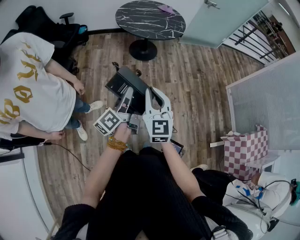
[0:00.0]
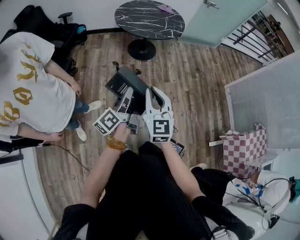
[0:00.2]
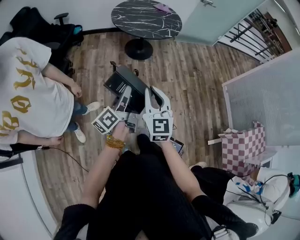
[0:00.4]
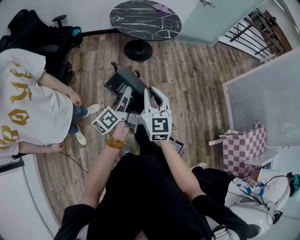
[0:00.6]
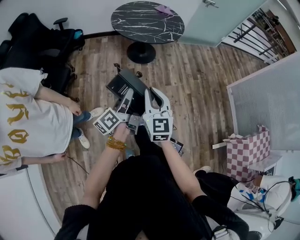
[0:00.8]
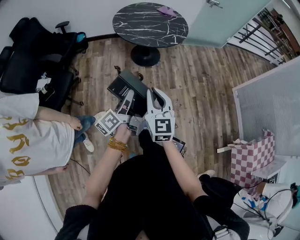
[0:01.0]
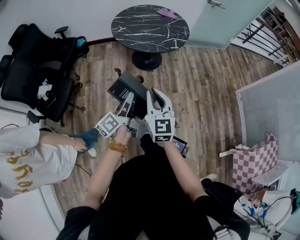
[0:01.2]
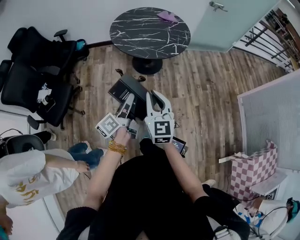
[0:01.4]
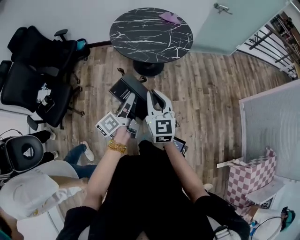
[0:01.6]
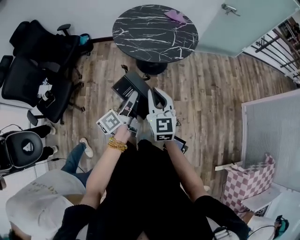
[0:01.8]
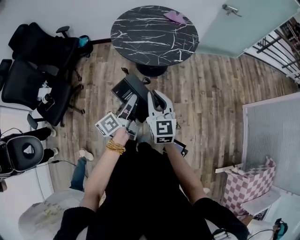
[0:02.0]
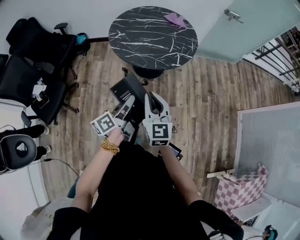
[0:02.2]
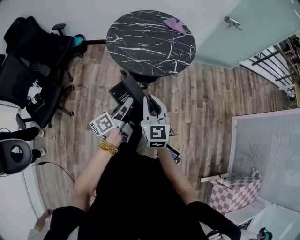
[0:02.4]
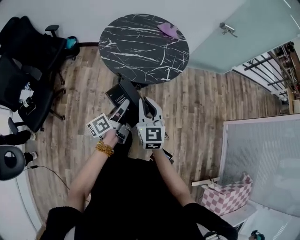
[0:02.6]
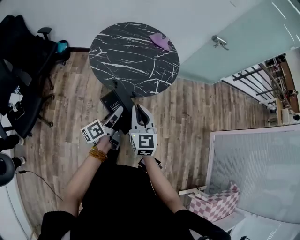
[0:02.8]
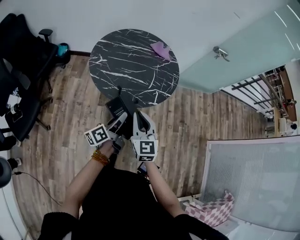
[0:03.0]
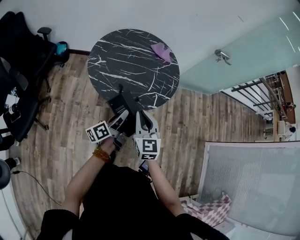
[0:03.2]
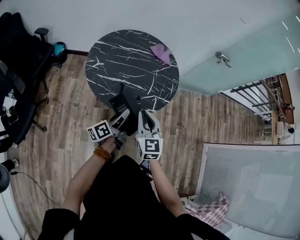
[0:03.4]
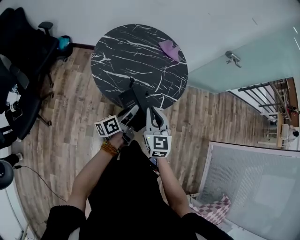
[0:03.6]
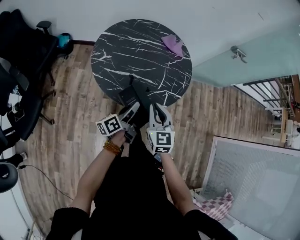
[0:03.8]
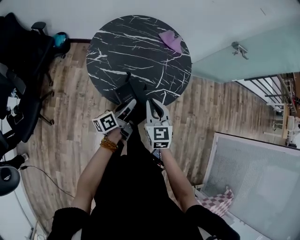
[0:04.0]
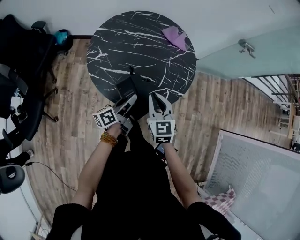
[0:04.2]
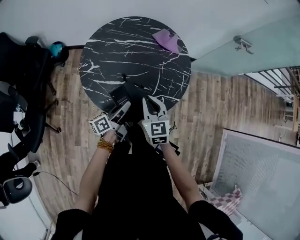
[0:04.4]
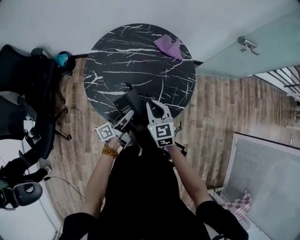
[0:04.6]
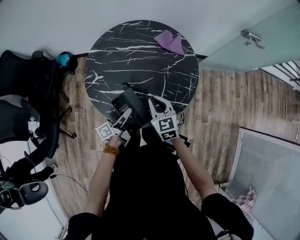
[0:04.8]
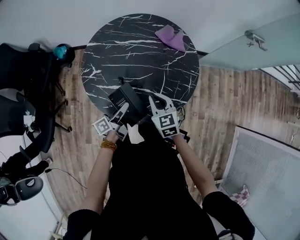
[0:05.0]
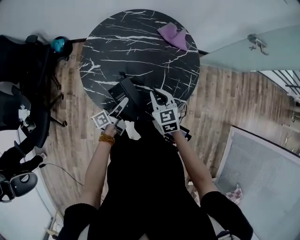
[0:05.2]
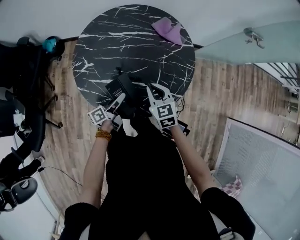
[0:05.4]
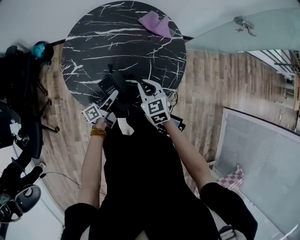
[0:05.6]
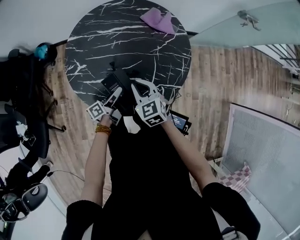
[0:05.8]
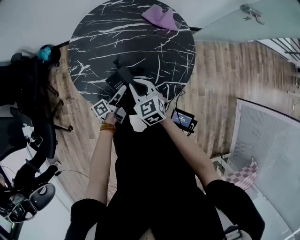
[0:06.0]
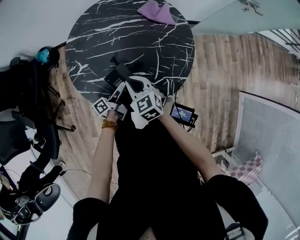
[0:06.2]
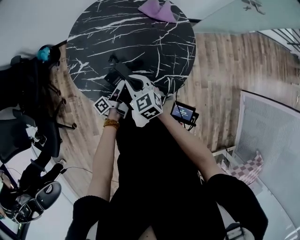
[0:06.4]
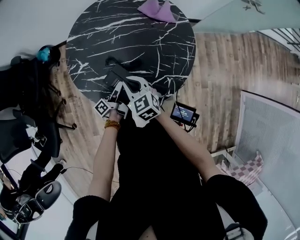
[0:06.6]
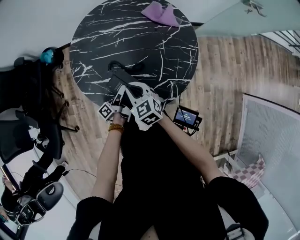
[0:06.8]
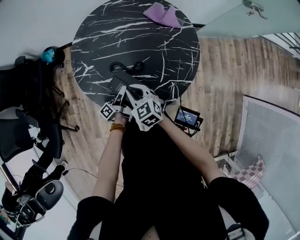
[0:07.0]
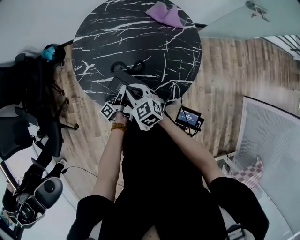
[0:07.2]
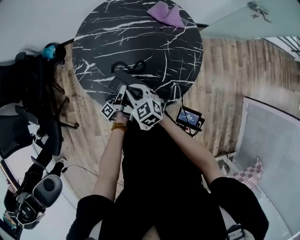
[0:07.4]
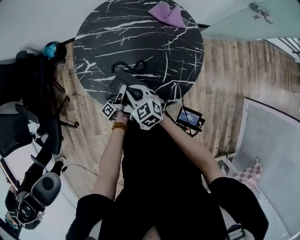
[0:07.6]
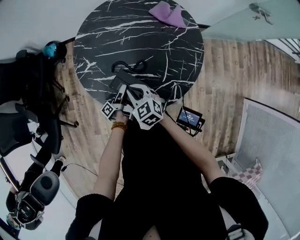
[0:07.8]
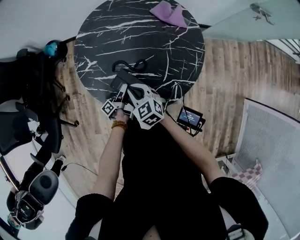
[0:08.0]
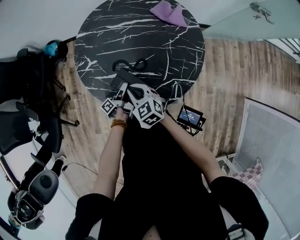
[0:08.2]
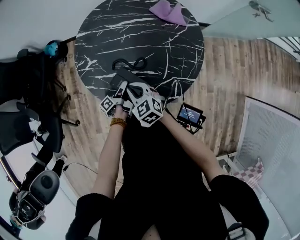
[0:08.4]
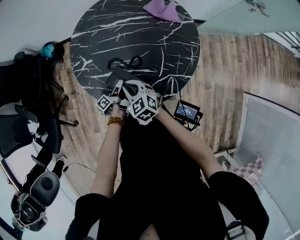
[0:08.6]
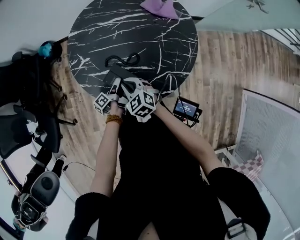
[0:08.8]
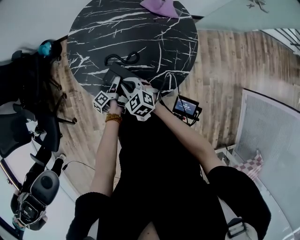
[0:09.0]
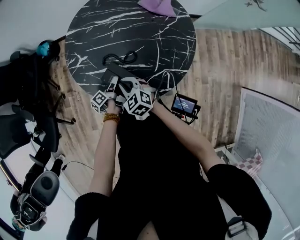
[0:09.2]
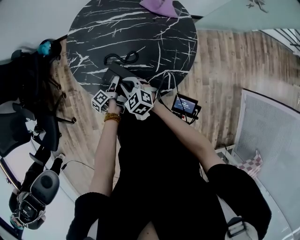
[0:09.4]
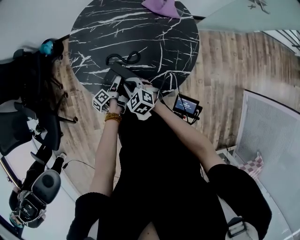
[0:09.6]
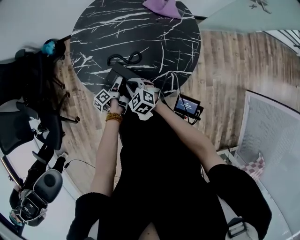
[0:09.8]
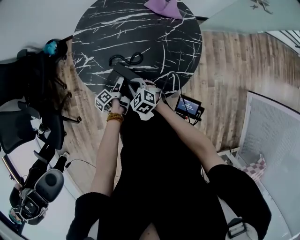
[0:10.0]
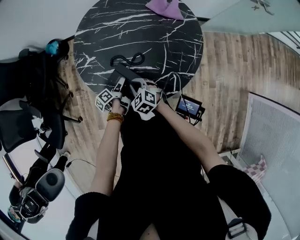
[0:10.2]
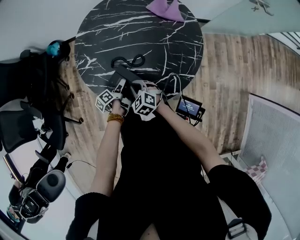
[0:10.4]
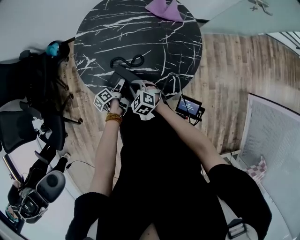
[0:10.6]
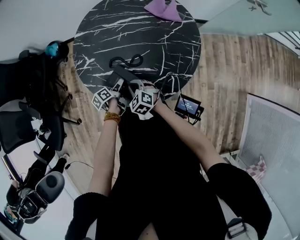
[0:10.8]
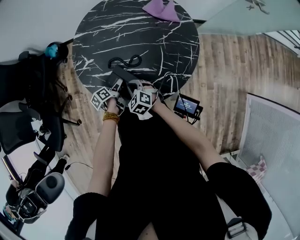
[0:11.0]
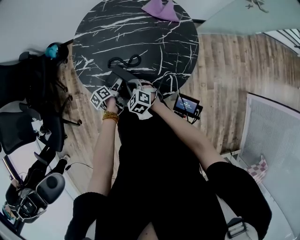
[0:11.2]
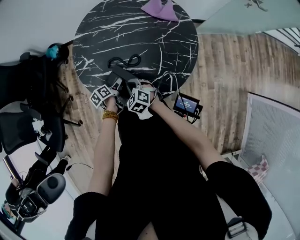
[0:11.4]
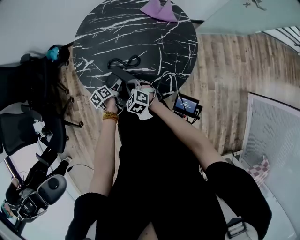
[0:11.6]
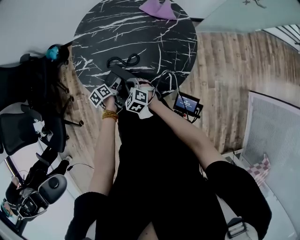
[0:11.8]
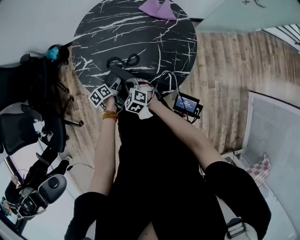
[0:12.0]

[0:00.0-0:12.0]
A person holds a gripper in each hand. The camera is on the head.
0:00.0 to 0:01.6: Both grippers move forward, roughly 30 cm.
0:01.6 to 0:03.0: Both grippers travel together forward, roughly 25 cm.
0:03.0 to 0:04.4: Both grippers move forward, some 25 cm.
0:04.4 to 0:06.0: The grippers both shift downward and forward by roughly 10 cm.
0:06.0 to 0:07.6: The left gripper travels downward by some 5 cm, and rotates roughly 30 degrees; the right gripper heads to the left, covering some 5 cm.
0:07.6 to 0:09.0: The left gripper swivels roughly 20 degrees.
0:09.0 to 0:10.4: The right gripper heads downward, covering roughly 5 cm.
0:10.4 to 0:12.0: The left gripper turns by some 30 degrees.

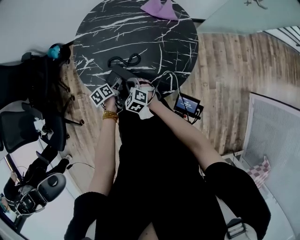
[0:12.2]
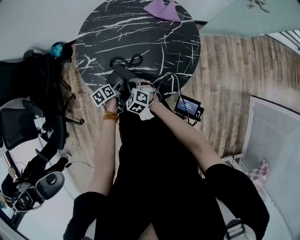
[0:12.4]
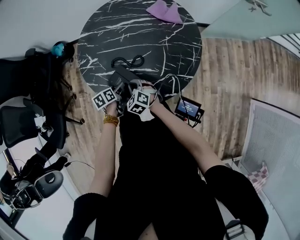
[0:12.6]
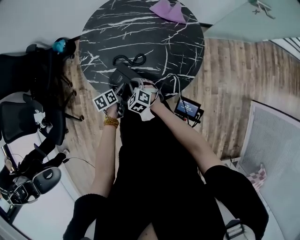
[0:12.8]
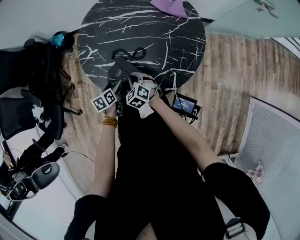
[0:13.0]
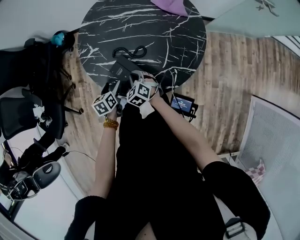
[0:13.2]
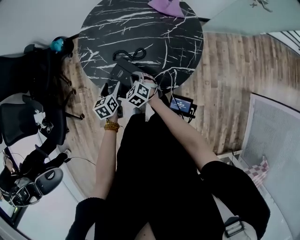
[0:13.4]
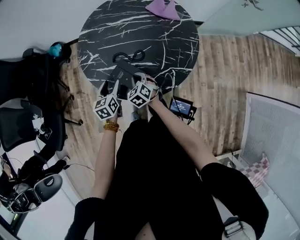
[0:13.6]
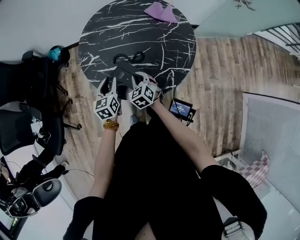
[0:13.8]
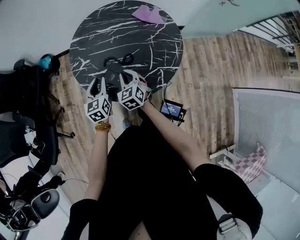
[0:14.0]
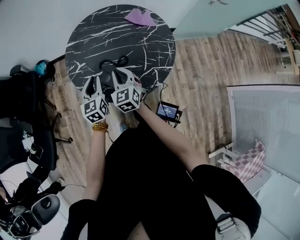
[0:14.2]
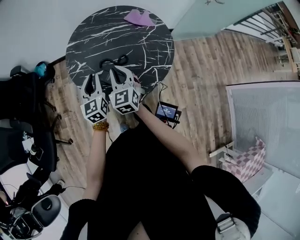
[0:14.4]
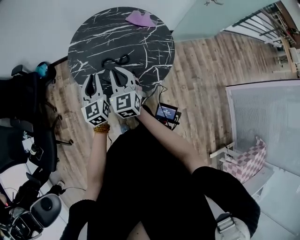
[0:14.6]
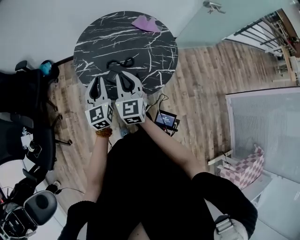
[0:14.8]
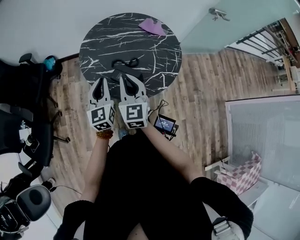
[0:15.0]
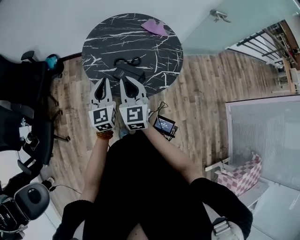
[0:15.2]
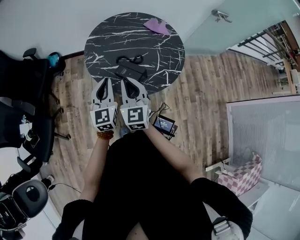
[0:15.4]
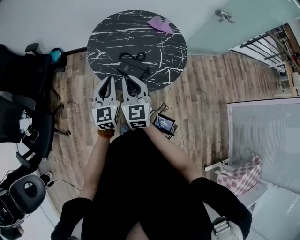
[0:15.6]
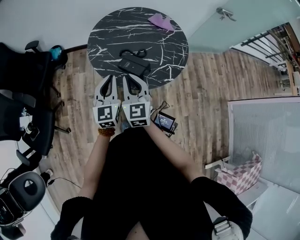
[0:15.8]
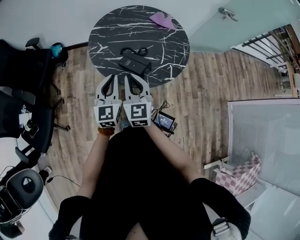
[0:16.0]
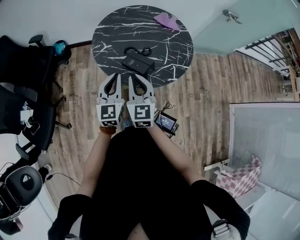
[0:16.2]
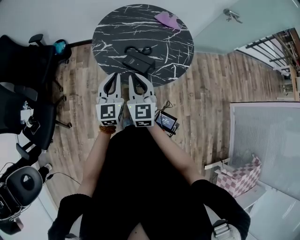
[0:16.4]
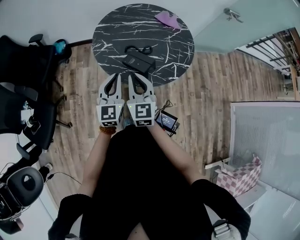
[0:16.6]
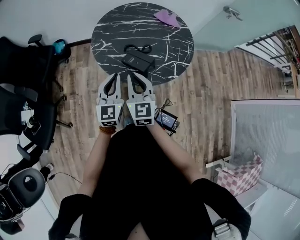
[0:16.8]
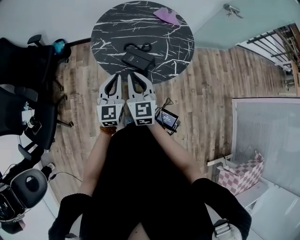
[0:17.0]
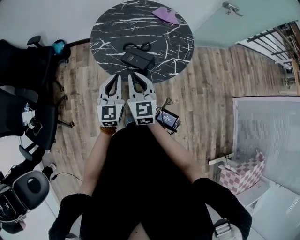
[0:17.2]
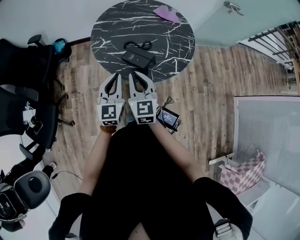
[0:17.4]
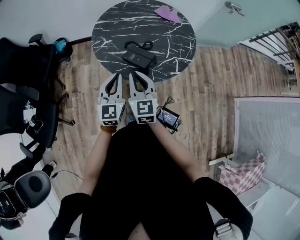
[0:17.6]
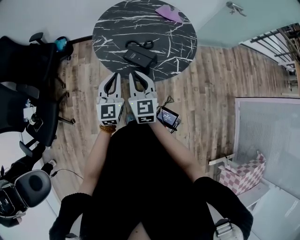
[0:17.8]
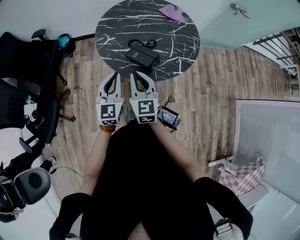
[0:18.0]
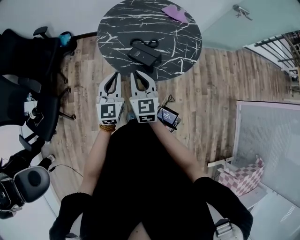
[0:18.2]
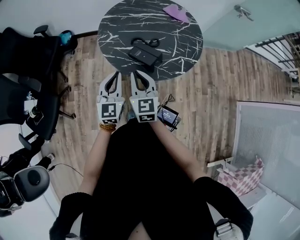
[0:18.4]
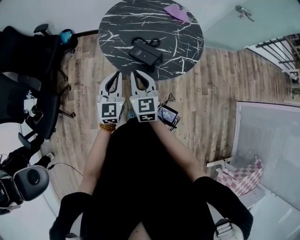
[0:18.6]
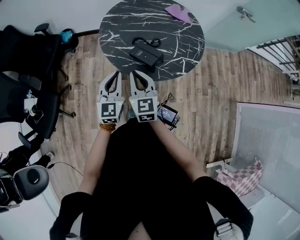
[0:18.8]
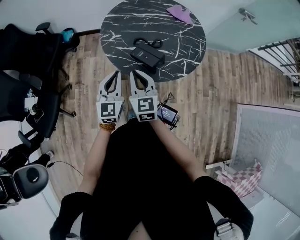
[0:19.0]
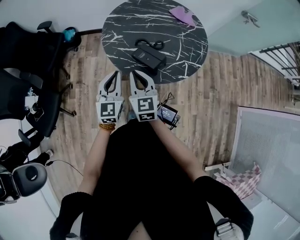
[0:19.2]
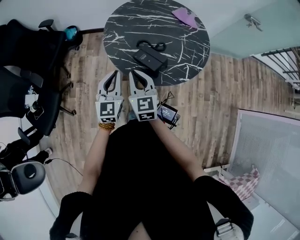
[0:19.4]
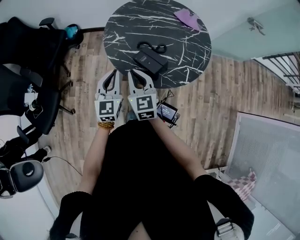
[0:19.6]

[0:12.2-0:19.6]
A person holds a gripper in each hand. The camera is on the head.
0:12.2 to 0:13.6: The left gripper is displaced upward by some 10 cm, and changes its angle by some 40 degrees.
0:13.6 to 0:15.2: The left gripper shifts roughly 25 cm upward and backward, tilts its fingers roughly 30 degrees upward, and closes; the right gripper is displaced upward by roughly 30 cm, and tilts its fingers approximately 40 degrees upward.
0:15.2 to 0:16.6: The right gripper shifts by some 5 cm, while the left gripper travels backward by approximately 5 cm.
0:16.6 to 0:18.2: There are only small adjustments of the grippers.
0:18.2 to 0:19.6: Both grippers travel together forward, roughly 5 cm.

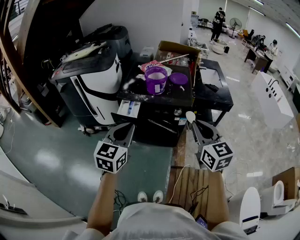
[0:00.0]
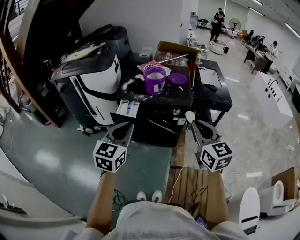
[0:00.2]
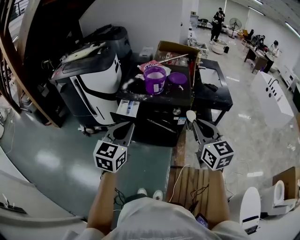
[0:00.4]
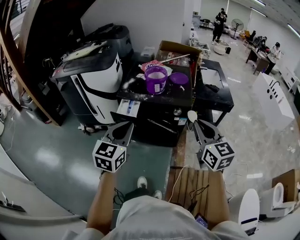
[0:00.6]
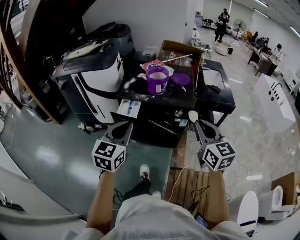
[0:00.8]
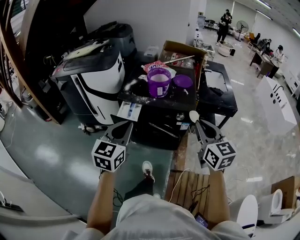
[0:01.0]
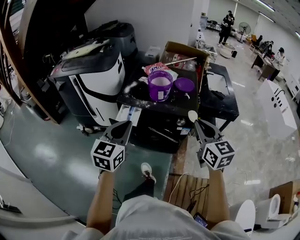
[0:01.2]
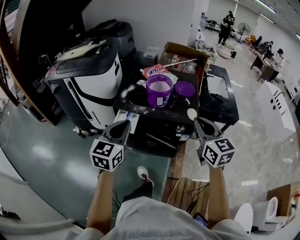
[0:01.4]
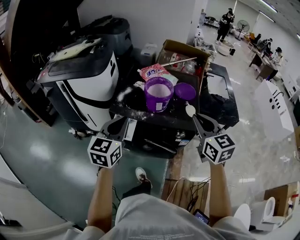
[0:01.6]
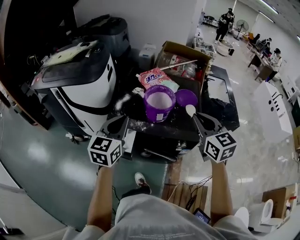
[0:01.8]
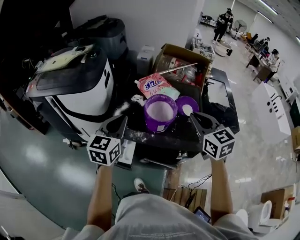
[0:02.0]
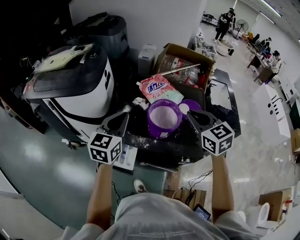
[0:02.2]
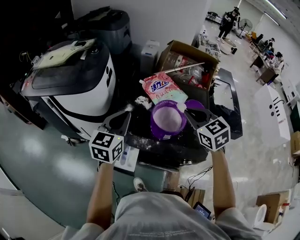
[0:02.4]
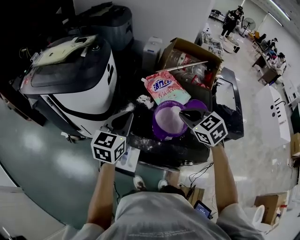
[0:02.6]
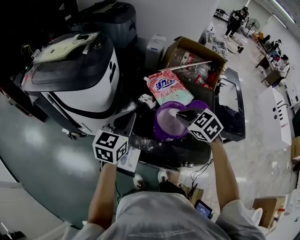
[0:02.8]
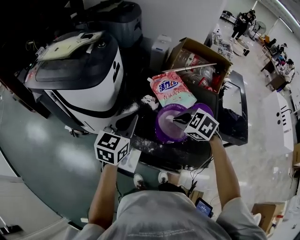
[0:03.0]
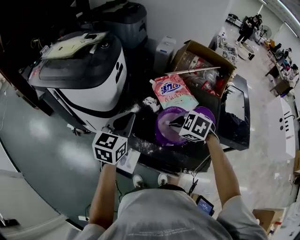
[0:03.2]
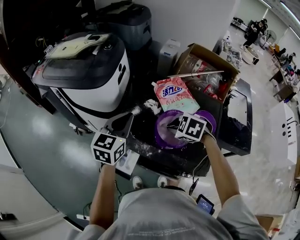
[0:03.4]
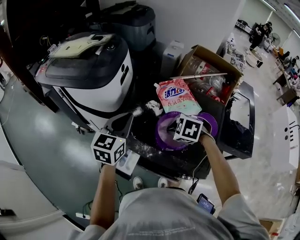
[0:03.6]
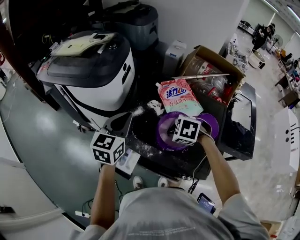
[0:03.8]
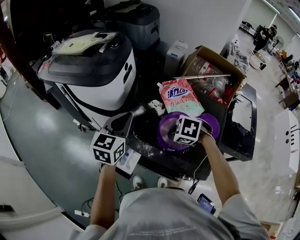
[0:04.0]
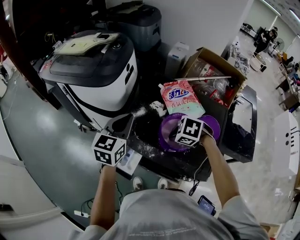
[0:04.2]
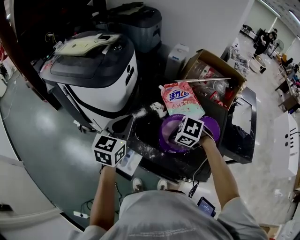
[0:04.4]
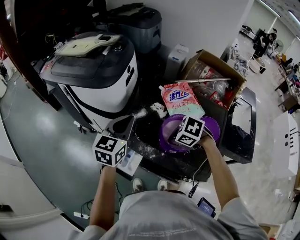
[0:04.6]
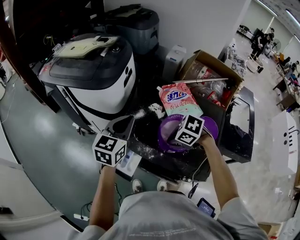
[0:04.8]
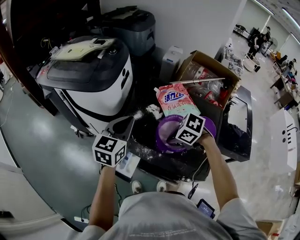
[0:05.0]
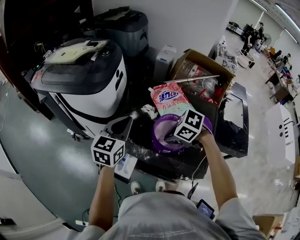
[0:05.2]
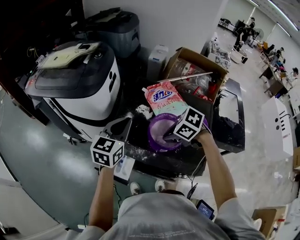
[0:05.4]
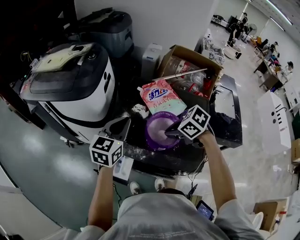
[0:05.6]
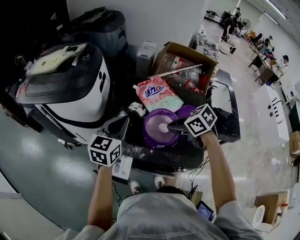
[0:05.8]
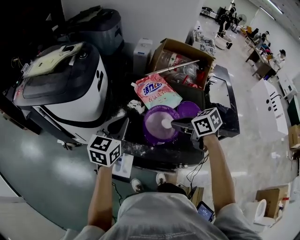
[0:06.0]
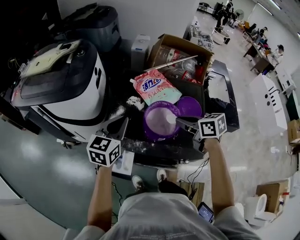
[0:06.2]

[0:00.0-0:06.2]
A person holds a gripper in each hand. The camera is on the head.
0:00.0 to 0:01.6: Both grippers travel together forward, some 25 cm.
0:01.6 to 0:03.2: The right gripper moves some 35 cm, and tips its fingers downward by about 50 degrees. The left gripper ends up some 25 cm from where it was.
0:03.2 to 0:04.6: The right gripper rotates some 20 degrees.
0:04.6 to 0:06.2: The left gripper changes place by about 5 cm, while the right gripper moves about 10 cm, and tips its fingers upward by about 30 degrees.
